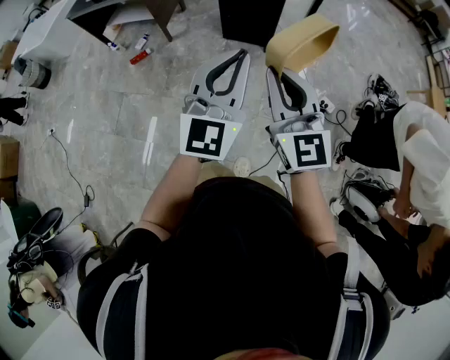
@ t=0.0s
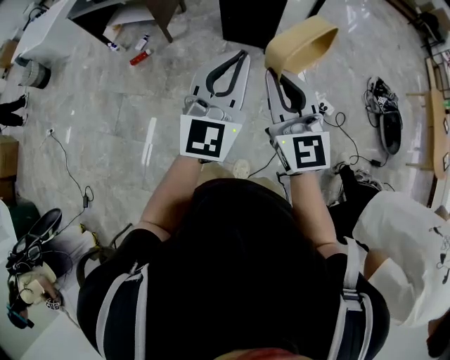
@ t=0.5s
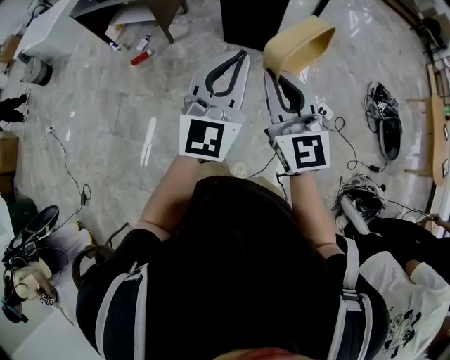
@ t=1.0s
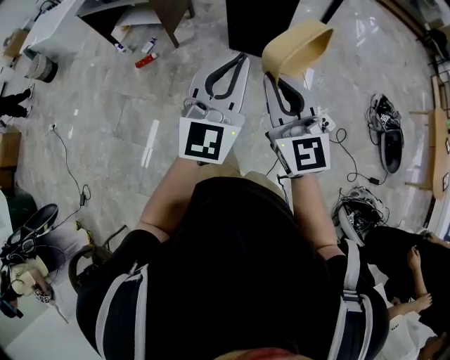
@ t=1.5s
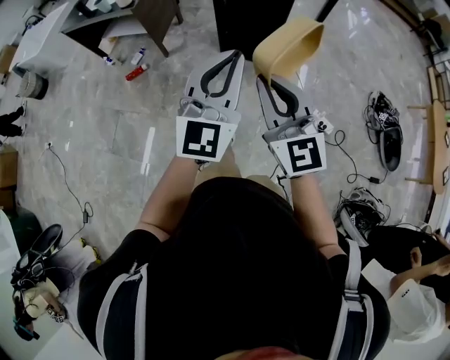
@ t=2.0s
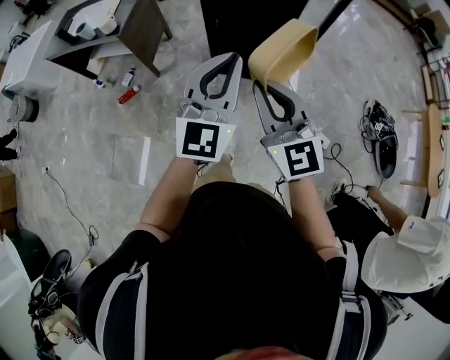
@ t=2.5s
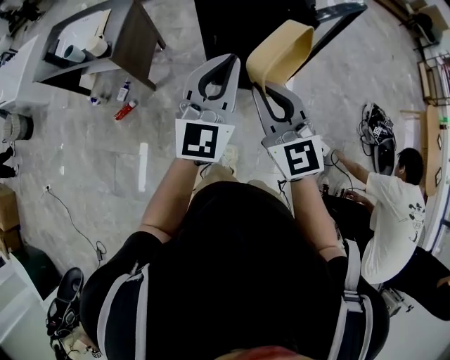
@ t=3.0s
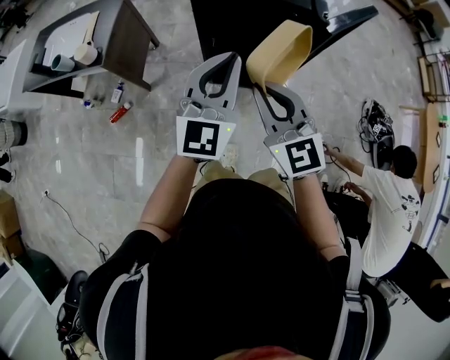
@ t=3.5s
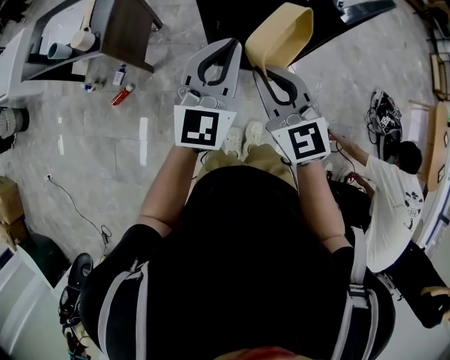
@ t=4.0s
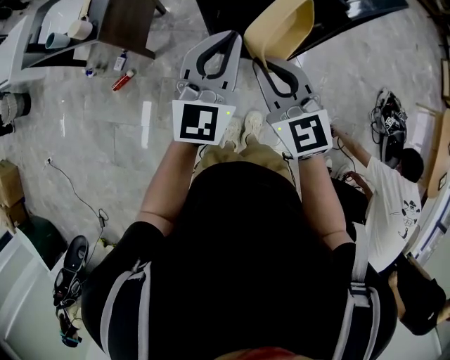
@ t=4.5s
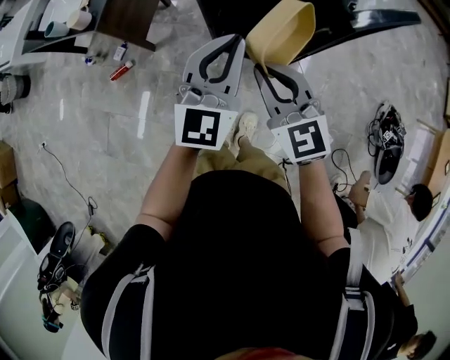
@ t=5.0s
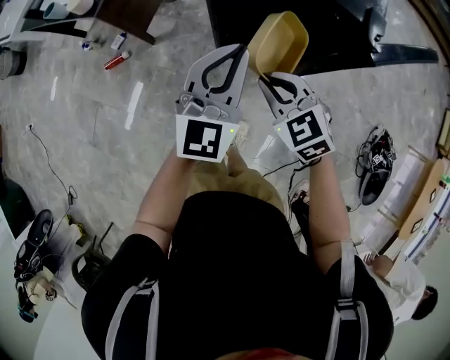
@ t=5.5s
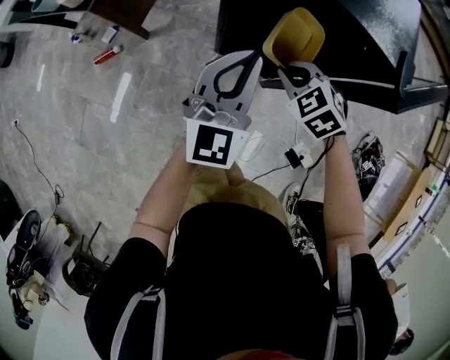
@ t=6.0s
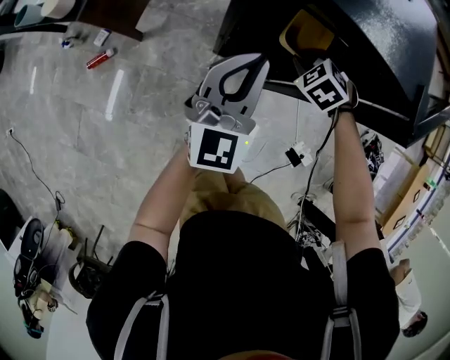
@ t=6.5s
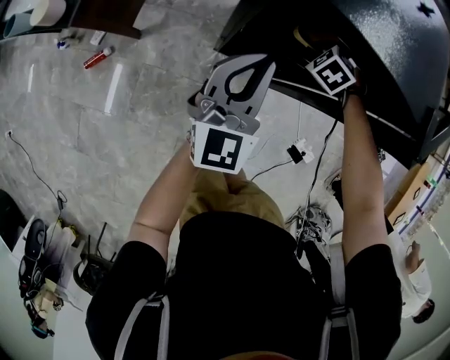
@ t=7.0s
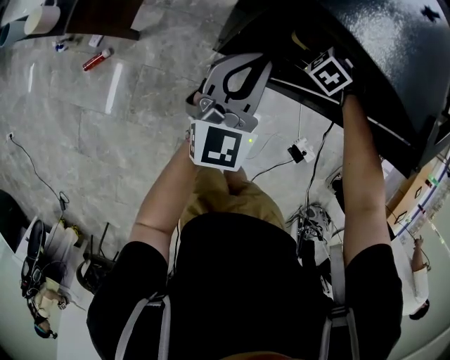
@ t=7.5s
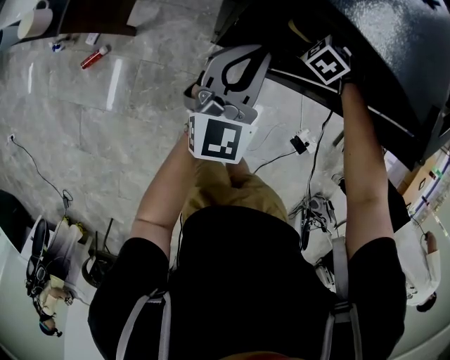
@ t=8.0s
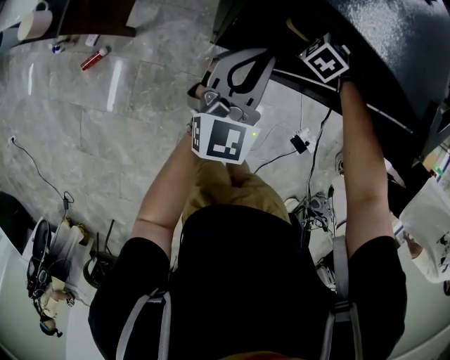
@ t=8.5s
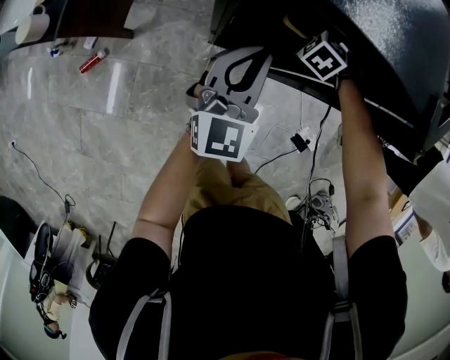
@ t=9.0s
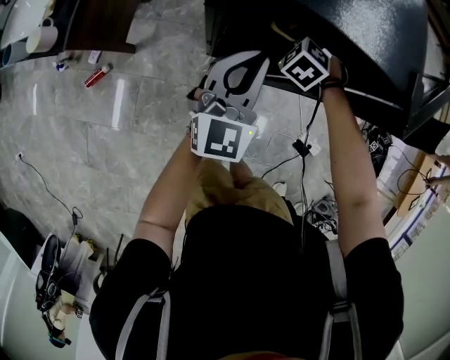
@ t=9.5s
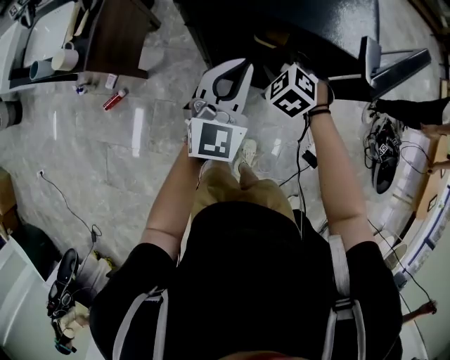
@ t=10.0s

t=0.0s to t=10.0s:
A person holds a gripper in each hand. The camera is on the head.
t=0.0s to t=2.0s: Both grippers move forward, roughly 20 cm.
t=2.0s to t=4.0s: The pair of grippers is taken forward, some 50 cm.
t=4.0s to t=6.0s: The grippers both shift downward and forward by about 25 cm. The right gripper tips its fingers downward by roughly 50 degrees.
t=6.0s to t=8.0s: The right gripper ends up about 25 cm from where it was, turns by approximately 20 degrees, and opens. Meanwhile the left gripper moves about 15 cm.
t=8.0s to t=10.0s: The left gripper heads upward, covering about 10 cm, while the right gripper shifts roughly 20 cm upward, and turns by about 20 degrees.

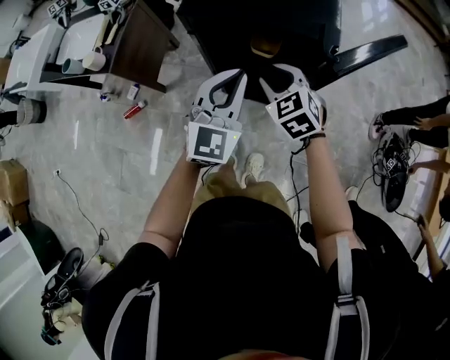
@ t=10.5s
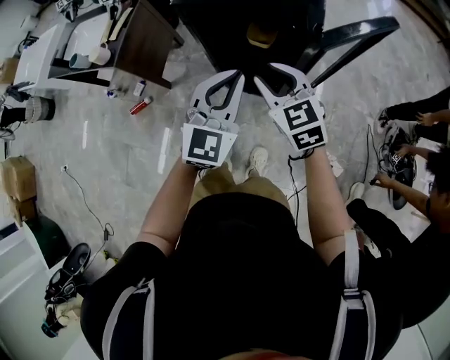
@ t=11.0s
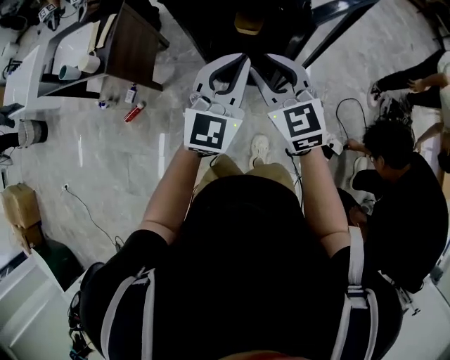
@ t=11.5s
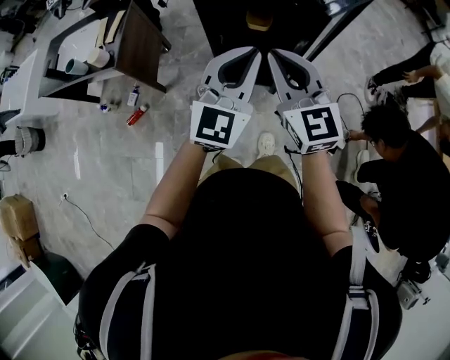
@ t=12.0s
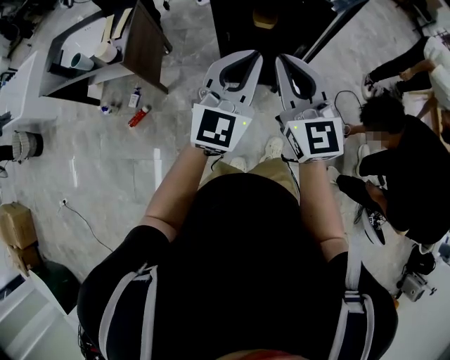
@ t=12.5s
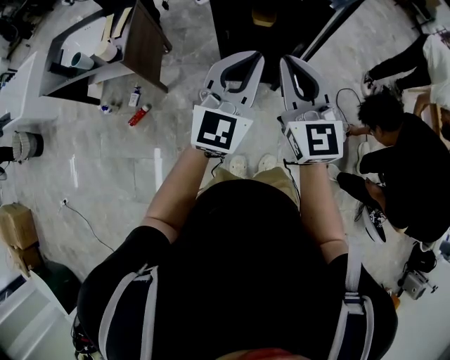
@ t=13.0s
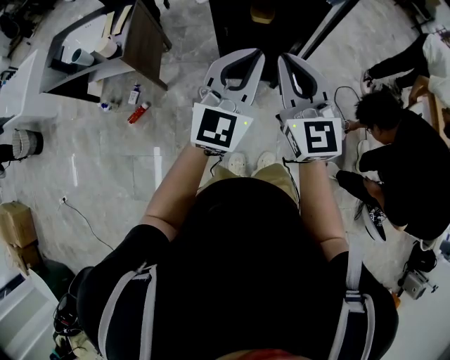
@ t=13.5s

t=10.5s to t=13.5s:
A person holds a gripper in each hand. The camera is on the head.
t=10.5s to t=12.0s: The grippers both shift backward, upward and to the left by roughly 25 cm. The right gripper points its fingers about 30 degrees further upward, and closes.
t=12.0s to t=13.5s: The right gripper moves backward, some 10 cm; the left gripper heads backward and to the left, covering some 10 cm.

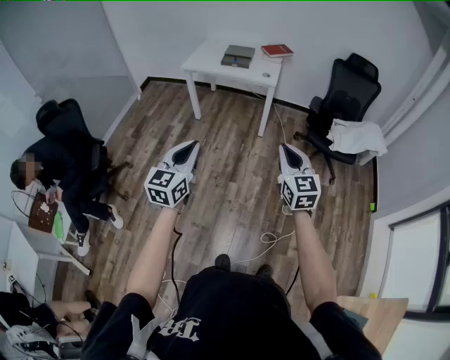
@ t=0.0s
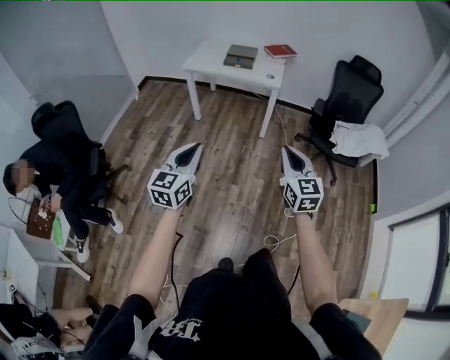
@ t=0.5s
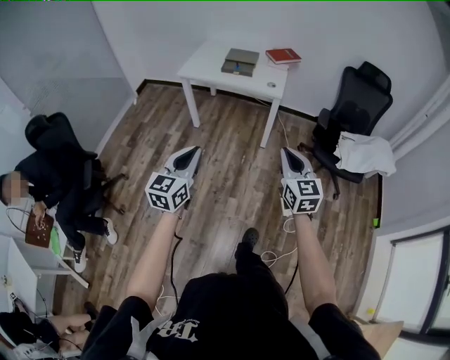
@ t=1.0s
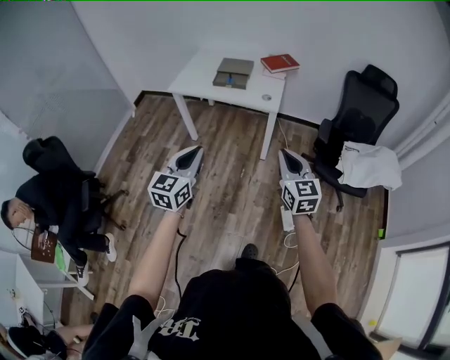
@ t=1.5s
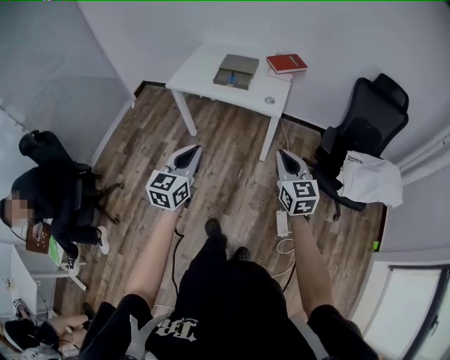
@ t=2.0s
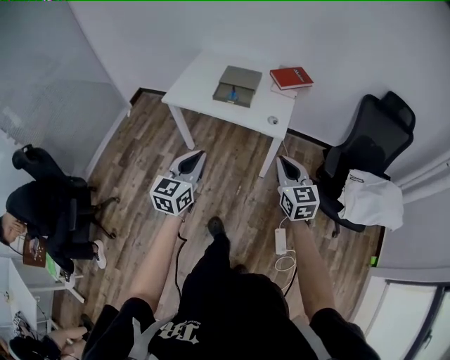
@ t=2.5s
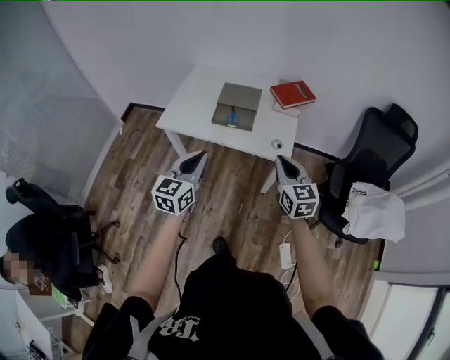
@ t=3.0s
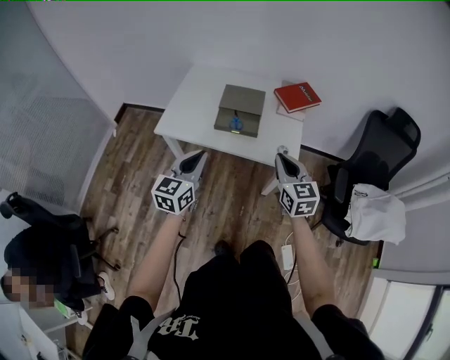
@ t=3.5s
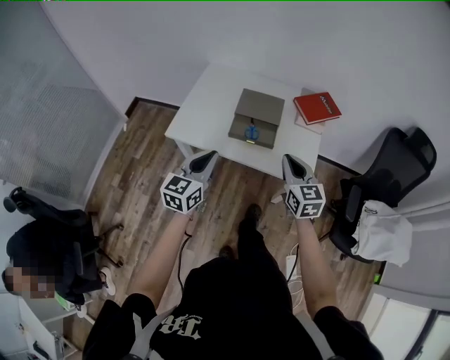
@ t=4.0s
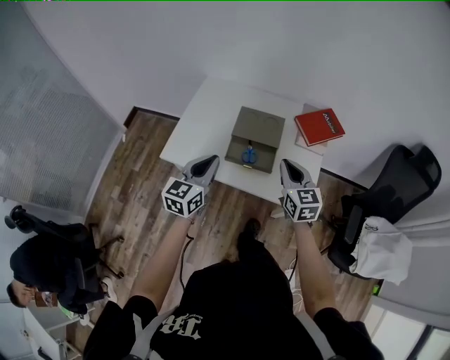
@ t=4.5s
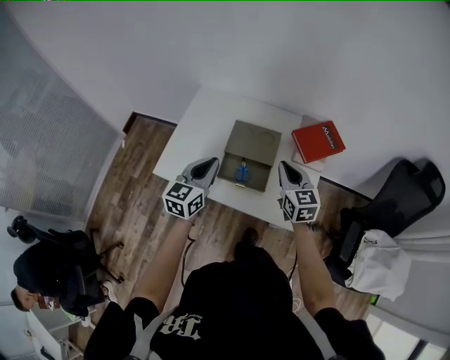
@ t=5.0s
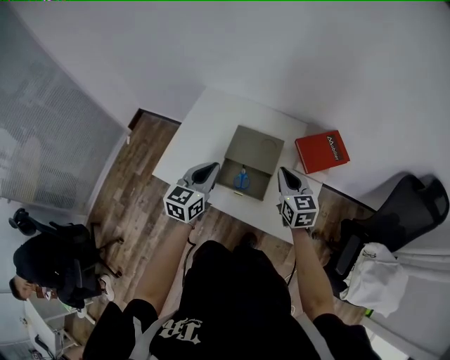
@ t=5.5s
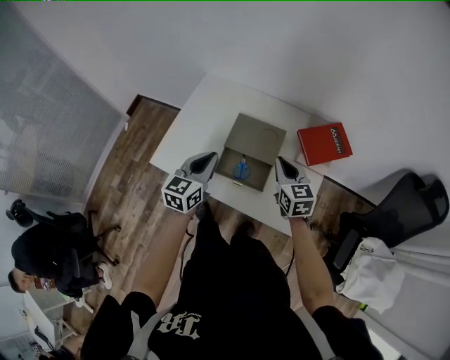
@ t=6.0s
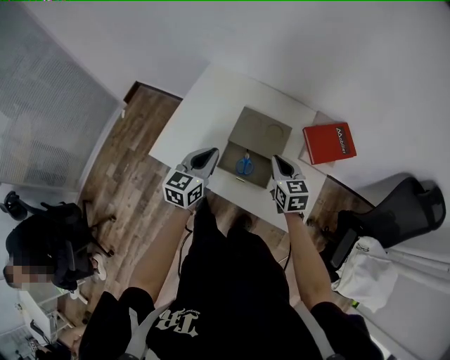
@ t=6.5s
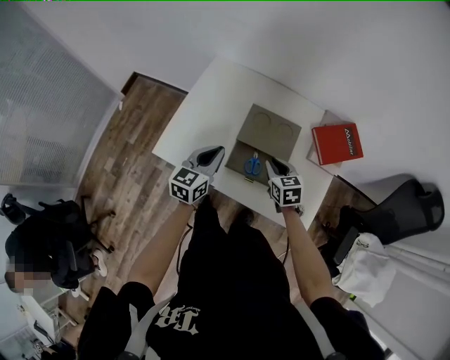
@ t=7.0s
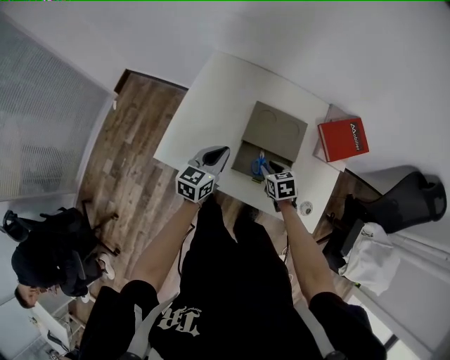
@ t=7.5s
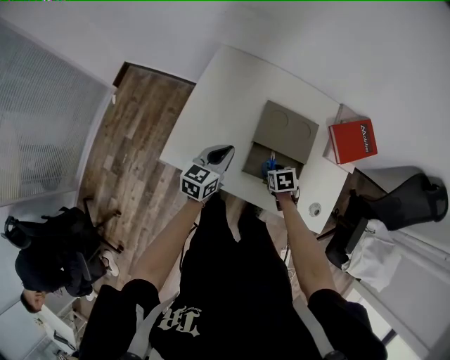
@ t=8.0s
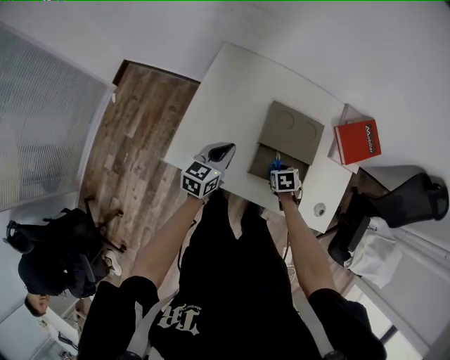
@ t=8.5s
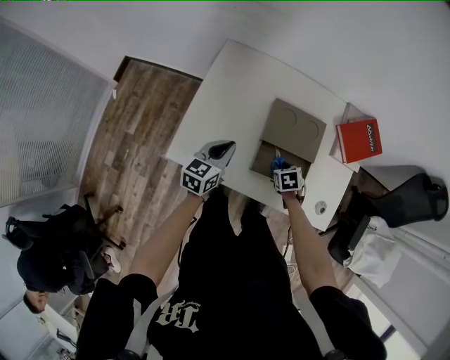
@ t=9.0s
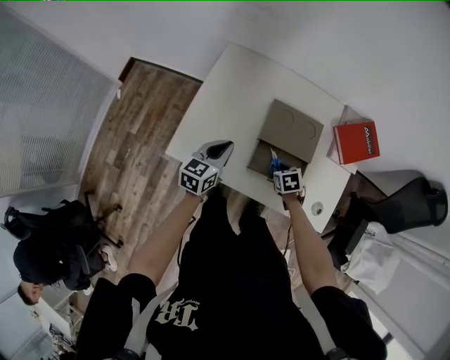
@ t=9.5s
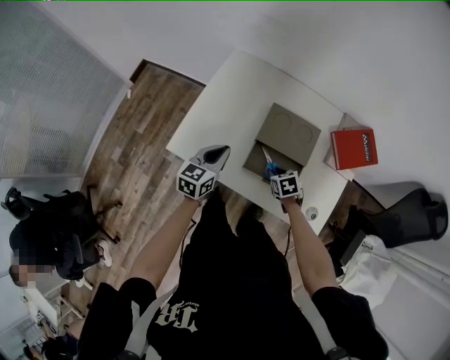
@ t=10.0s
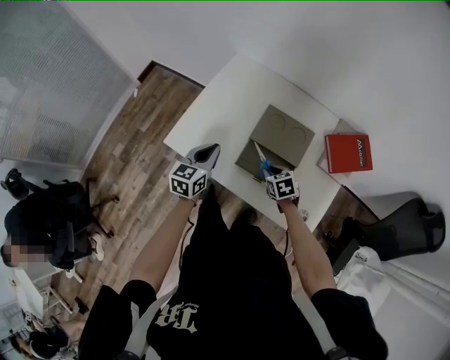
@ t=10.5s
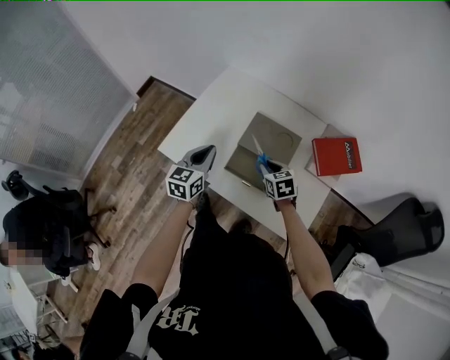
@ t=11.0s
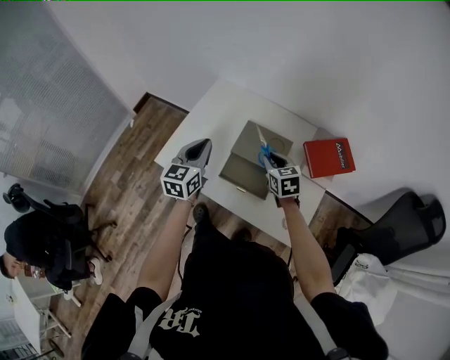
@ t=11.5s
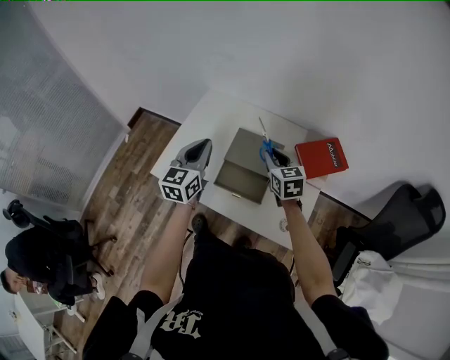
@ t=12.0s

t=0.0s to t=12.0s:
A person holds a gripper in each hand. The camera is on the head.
t=0.0s to t=2.0s: Both grippers move forward, about 40 cm.
t=2.0s to t=4.0s: The two grippers travel together, forward, about 40 cm.
t=4.0s to t=6.0s: The grippers both shift forward by about 25 cm.
t=6.0s to t=8.0s: The right gripper heads downward and to the left, covering roughly 30 cm, tips its fingers downward by approximately 50 degrees, and opens. Meanwhile the left gripper goes approximately 15 cm downward, to the left and forward.
t=8.0s to t=10.0s: The grippers make only small movements.
t=10.0s to t=12.0s: The right gripper heads upward, covering about 25 cm, and angles its fingers upward, by roughly 40 degrees. Meanwhile the left gripper heads upward and to the right, covering approximately 20 cm, and turns by some 20 degrees.

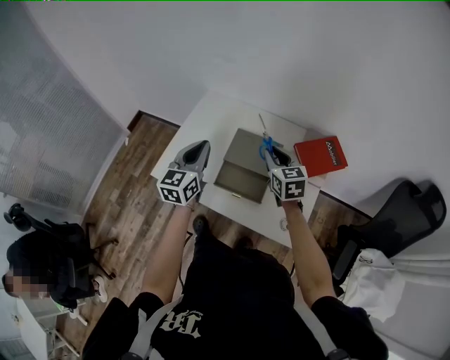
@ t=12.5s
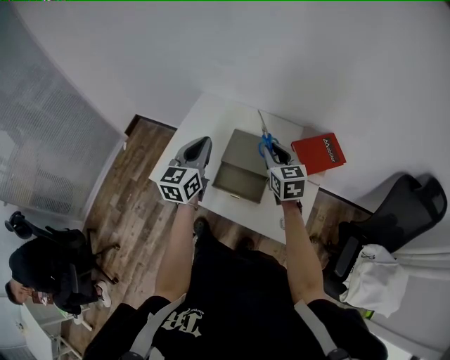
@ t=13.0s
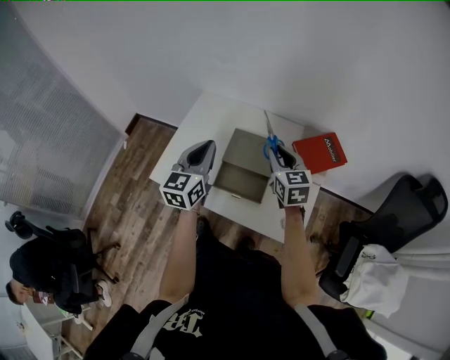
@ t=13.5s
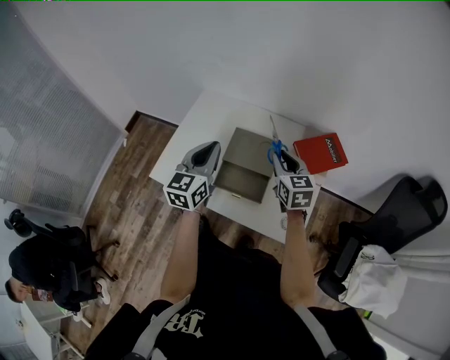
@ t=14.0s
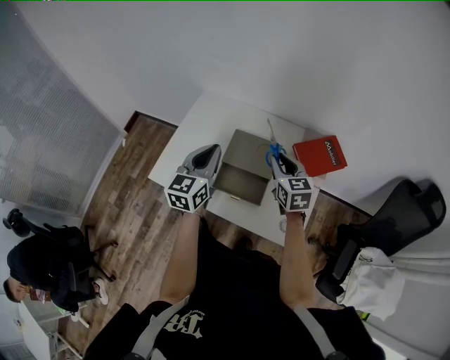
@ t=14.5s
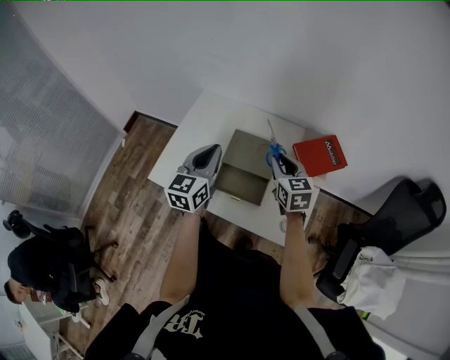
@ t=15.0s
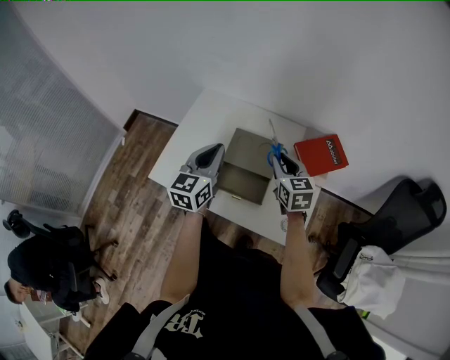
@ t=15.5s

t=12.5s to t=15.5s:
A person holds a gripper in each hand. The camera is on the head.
t=12.5s to t=15.5s: There are only small adjustments of the grippers.
